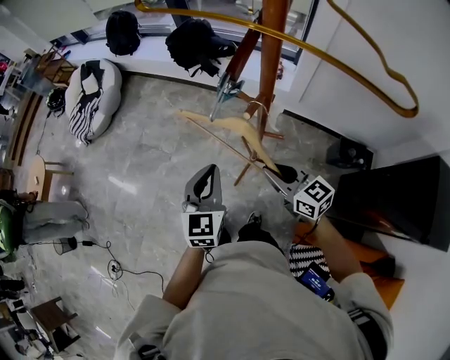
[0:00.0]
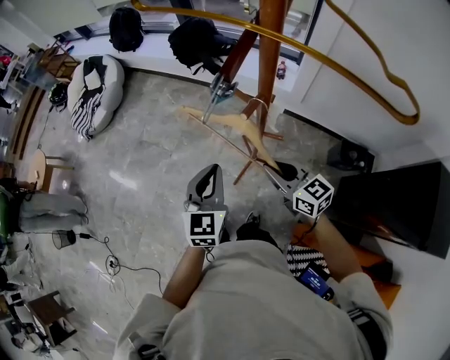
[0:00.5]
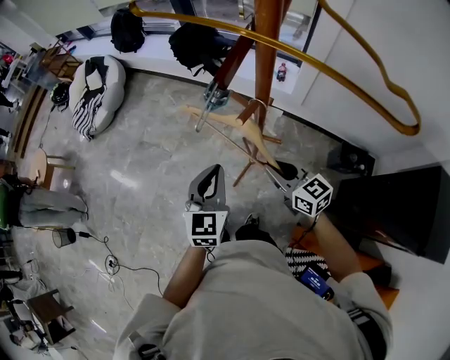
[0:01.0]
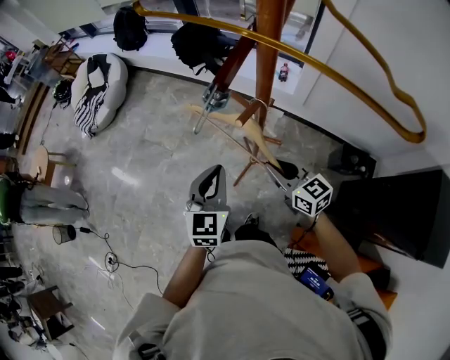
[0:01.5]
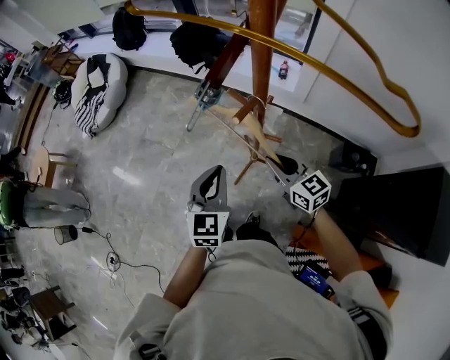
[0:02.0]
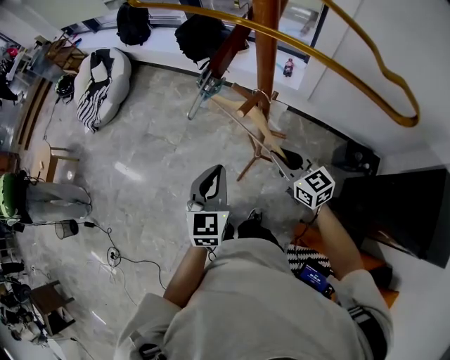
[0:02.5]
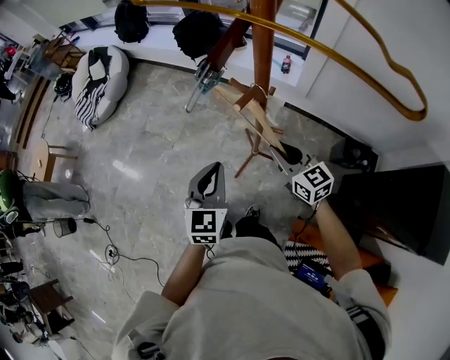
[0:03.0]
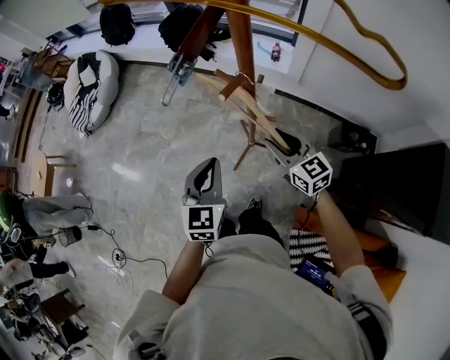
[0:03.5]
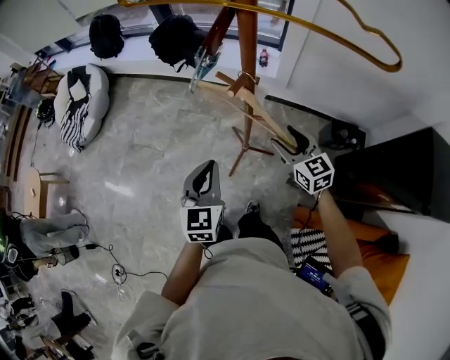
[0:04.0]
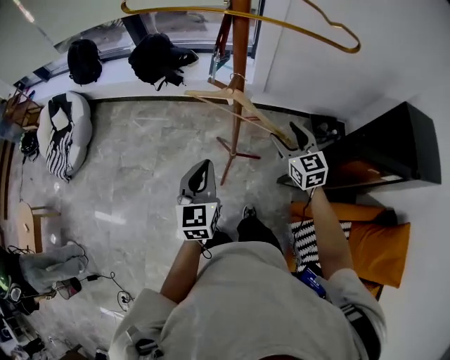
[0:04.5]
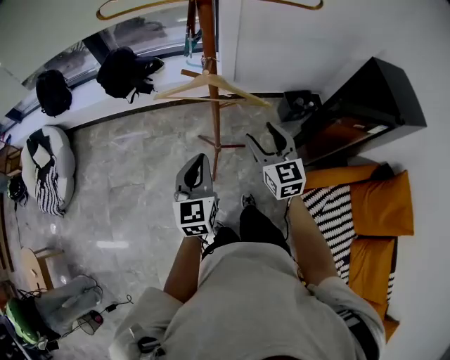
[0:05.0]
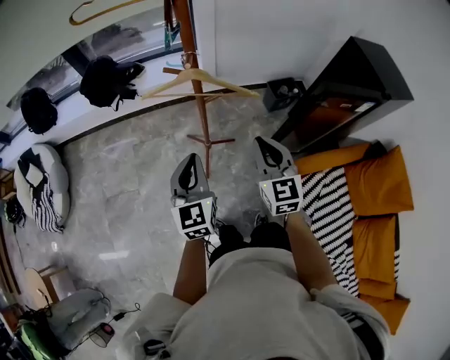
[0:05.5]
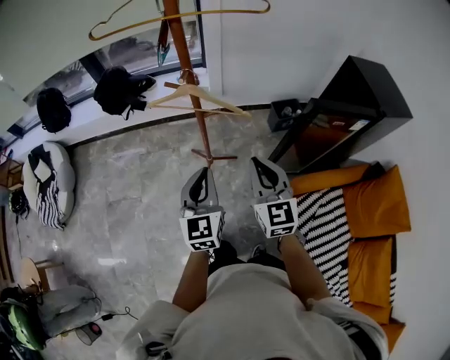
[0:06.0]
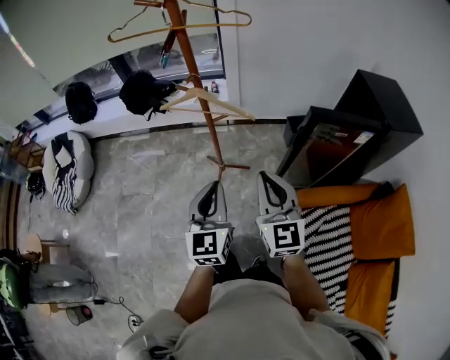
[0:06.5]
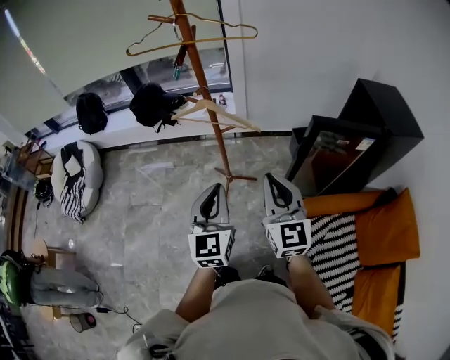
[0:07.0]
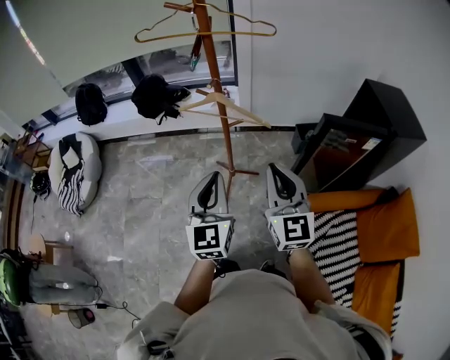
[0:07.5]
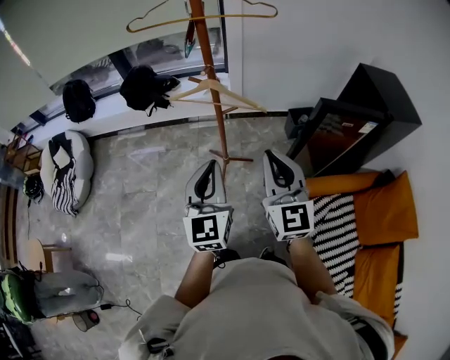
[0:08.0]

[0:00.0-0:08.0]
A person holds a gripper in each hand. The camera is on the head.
0:00.0 to 0:02.0: The left gripper shifts by about 5 cm. Meanwhile the right gripper shifts by approximately 5 cm.
0:02.0 to 0:04.0: The right gripper rotates roughly 20 degrees, and opens its fingers.
0:04.0 to 0:06.0: The right gripper ends up approximately 30 cm from where it was, rotates some 40 degrees, and closes up, while the left gripper changes place by some 15 cm, and rotates approximately 20 degrees.
0:06.0 to 0:08.0: The grippers both shift upward and backward by roughly 10 cm.

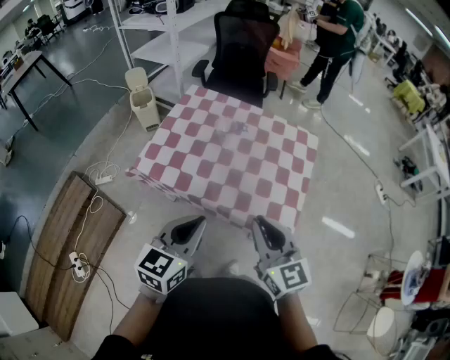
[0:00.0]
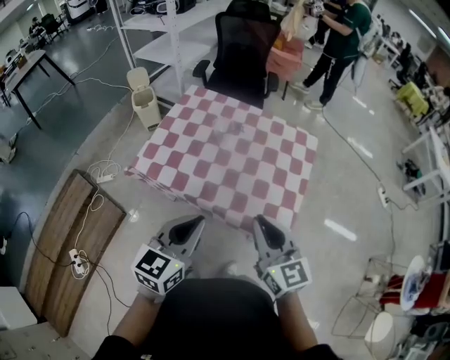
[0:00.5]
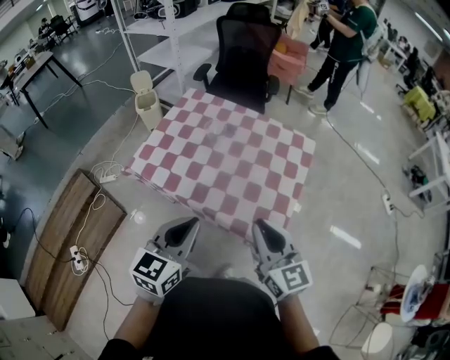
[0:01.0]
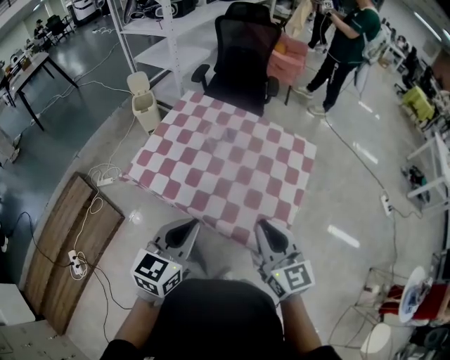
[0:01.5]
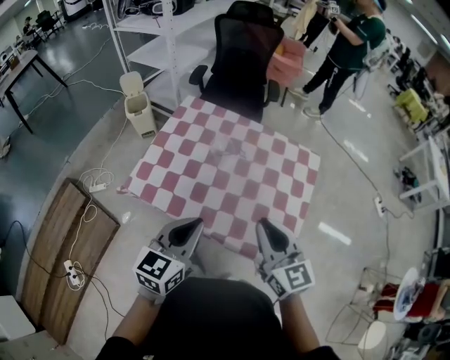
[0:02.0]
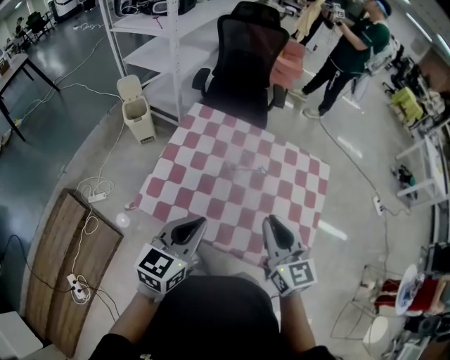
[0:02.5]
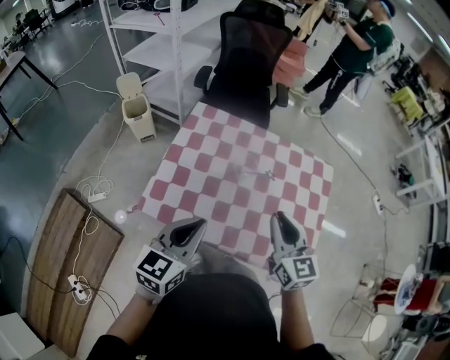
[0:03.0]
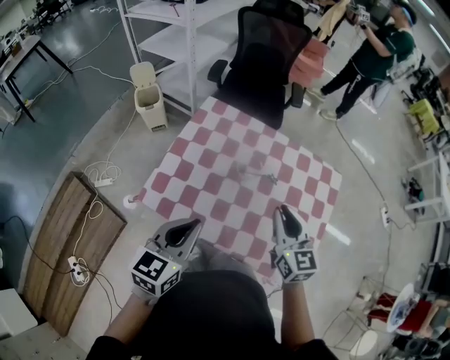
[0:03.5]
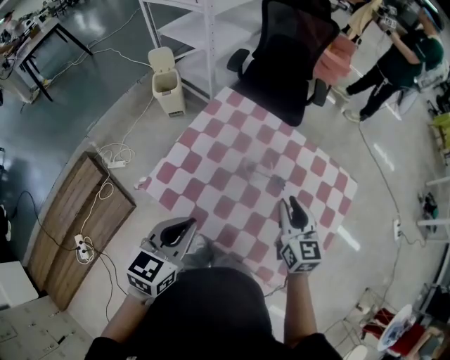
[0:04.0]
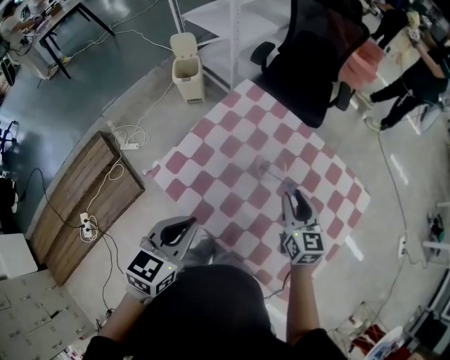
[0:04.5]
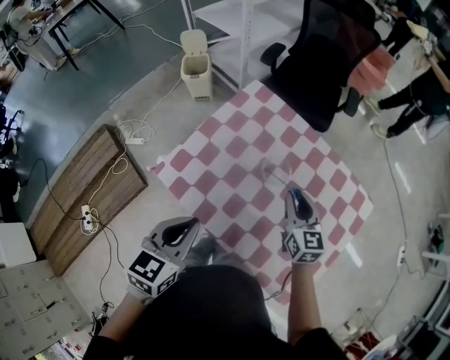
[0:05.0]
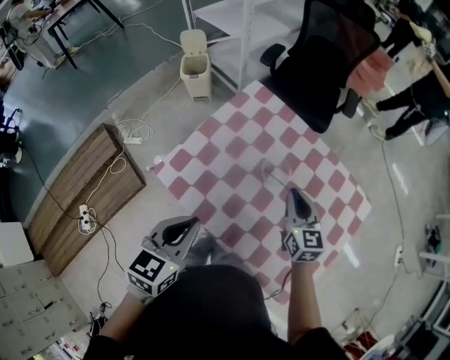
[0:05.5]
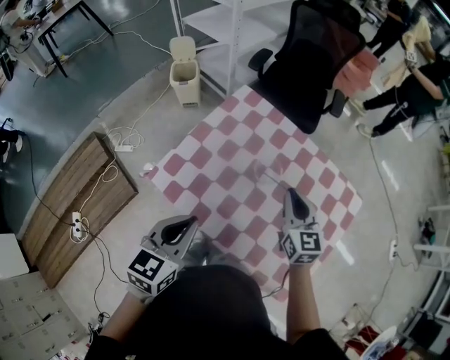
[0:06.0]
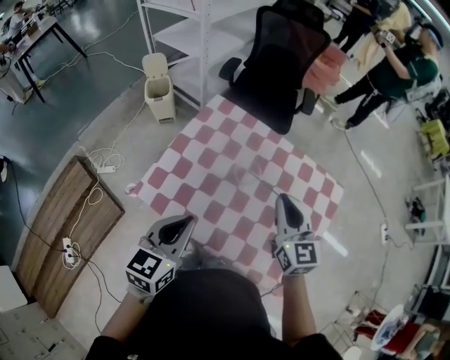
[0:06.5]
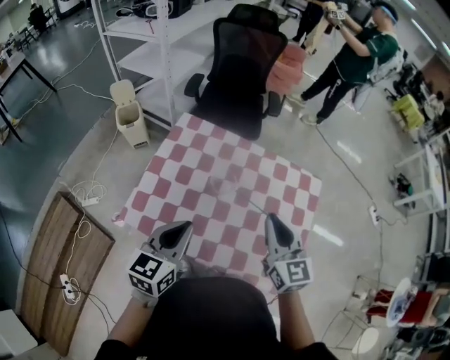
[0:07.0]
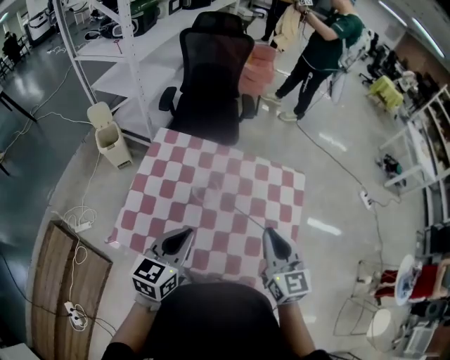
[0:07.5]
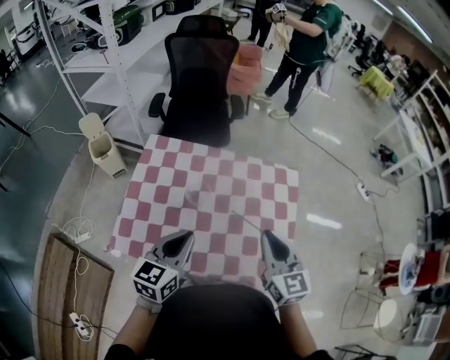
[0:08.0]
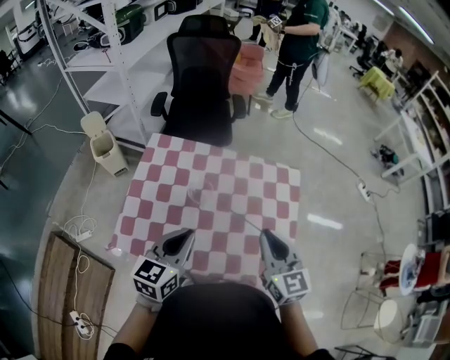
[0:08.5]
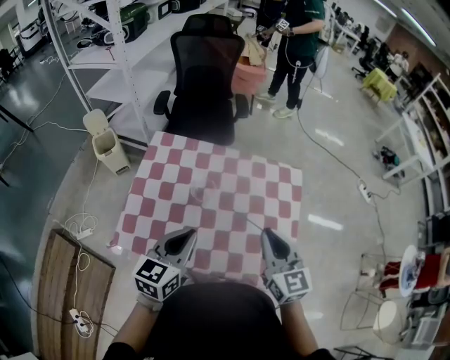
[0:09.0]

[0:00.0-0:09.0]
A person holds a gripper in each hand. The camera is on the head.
0:00.0 to 0:02.0: Both grippers travel together forward, about 10 cm.
0:02.0 to 0:04.5: The right gripper travels forward and downward by some 30 cm, while the left gripper is displaced to the left, forward and downward by about 15 cm, and swivels approximately 20 degrees.
0:04.5 to 0:07.0: The right gripper travels upward and backward by roughly 15 cm, and closes up, while the left gripper ends up some 5 cm from where it was.
0:07.0 to 0:09.0: The right gripper changes place by some 5 cm, while the left gripper moves approximately 5 cm.

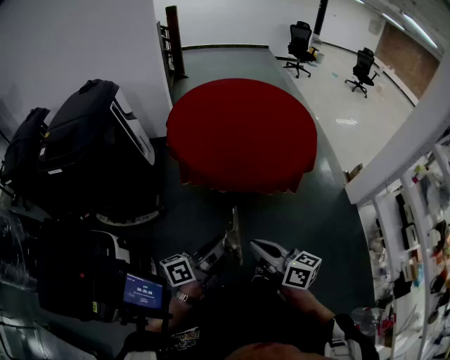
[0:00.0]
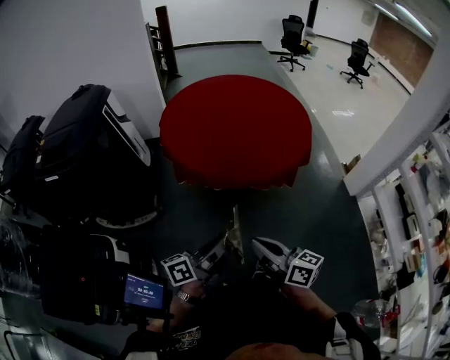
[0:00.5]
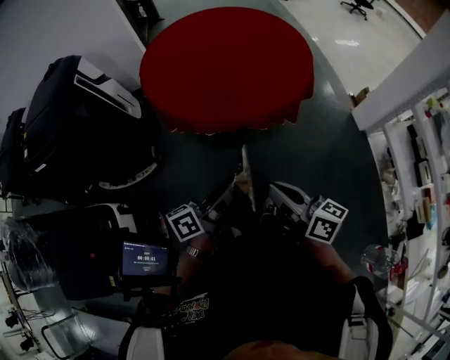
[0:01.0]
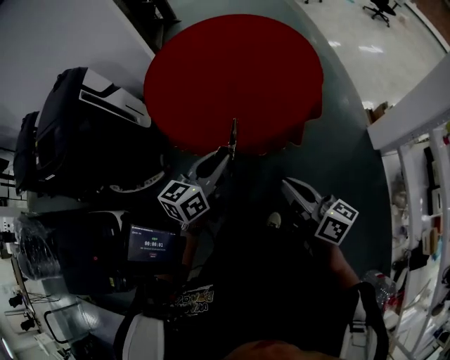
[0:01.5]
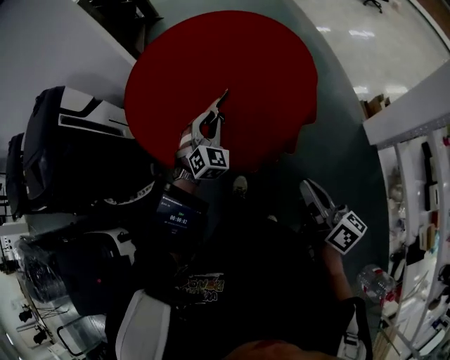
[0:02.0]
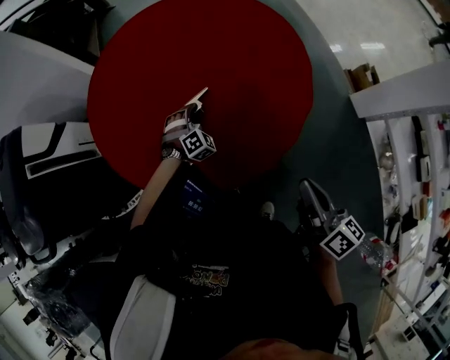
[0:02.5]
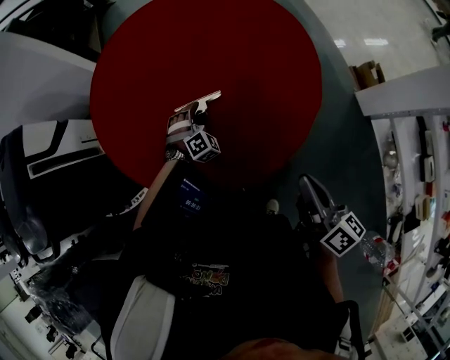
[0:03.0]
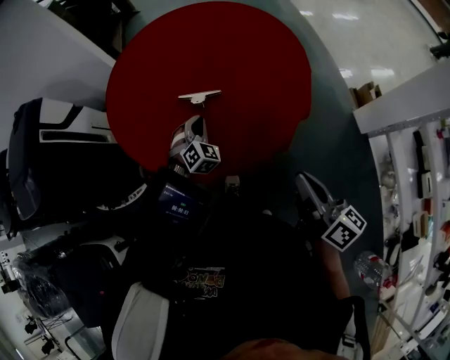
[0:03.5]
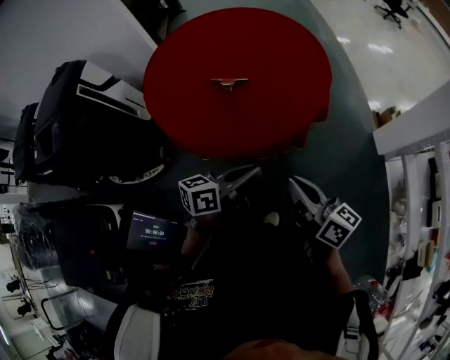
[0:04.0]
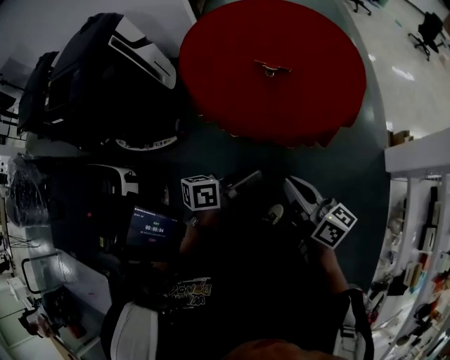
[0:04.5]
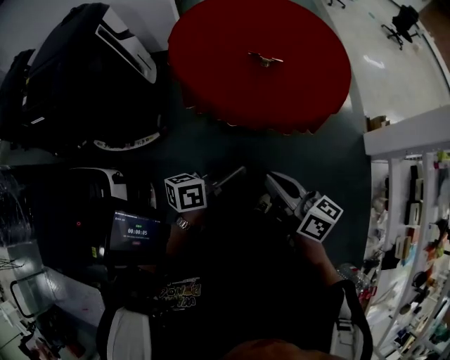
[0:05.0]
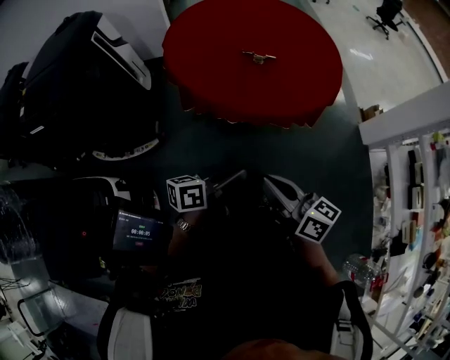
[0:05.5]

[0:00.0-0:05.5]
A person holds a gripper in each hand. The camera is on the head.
0:00.0 to 0:02.0: The left gripper goes about 50 cm forward, and rotates around the line of its fingers by about 100 degrees, clockwise from behind, while the right gripper is displaced to the right and forward by approximately 40 cm, and rotates about 30 degrees.
0:02.0 to 0:03.5: The right gripper shifts about 5 cm forward. Meanwhile the left gripper shifts some 10 cm downward and forward.
0:03.5 to 0:05.5: The right gripper goes about 40 cm to the left and backward, and changes its angle by some 20 degrees. Meanwhile the left gripper goes about 40 cm backward, and twists some 90 degrees counterclockwise, seen from behind.

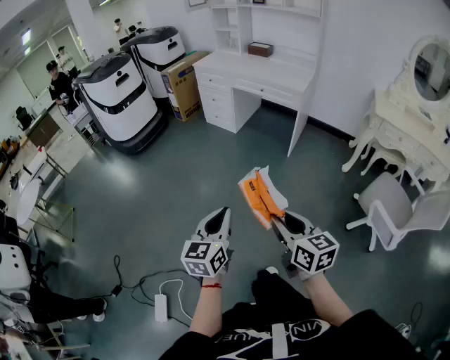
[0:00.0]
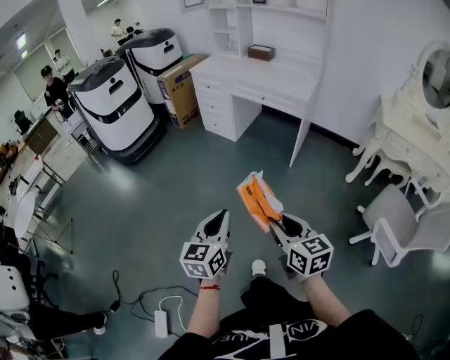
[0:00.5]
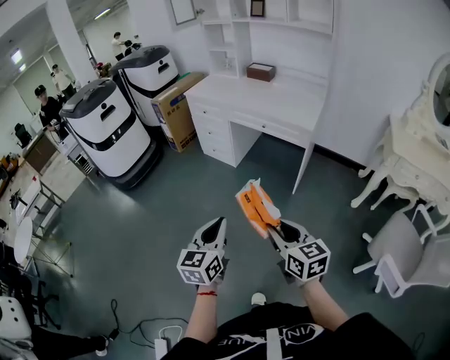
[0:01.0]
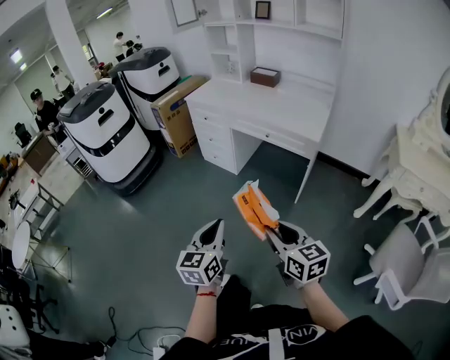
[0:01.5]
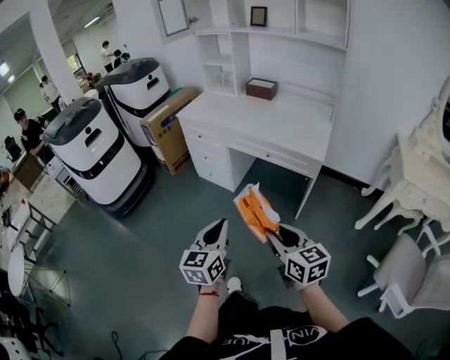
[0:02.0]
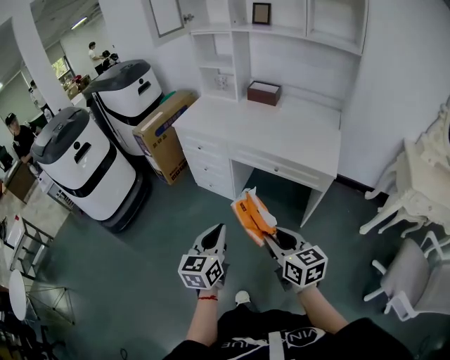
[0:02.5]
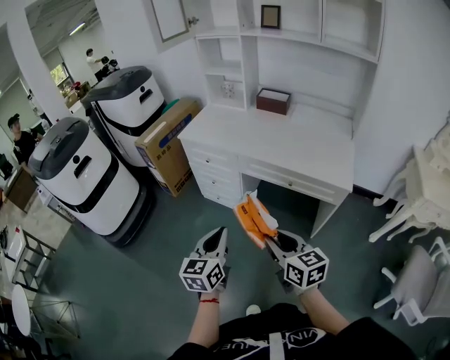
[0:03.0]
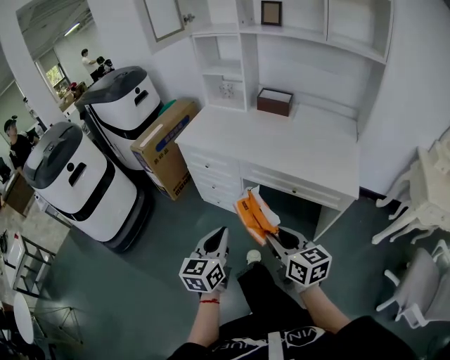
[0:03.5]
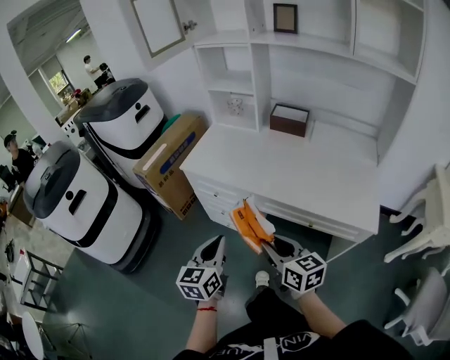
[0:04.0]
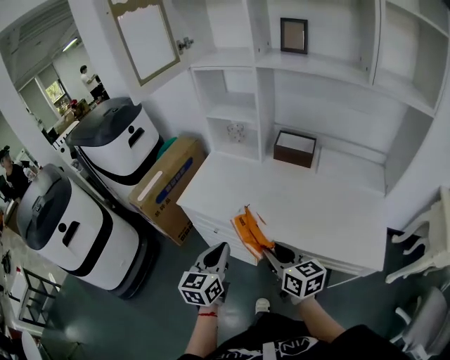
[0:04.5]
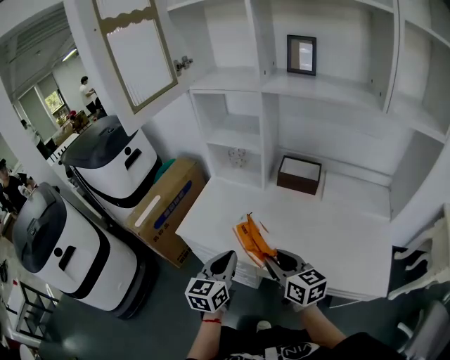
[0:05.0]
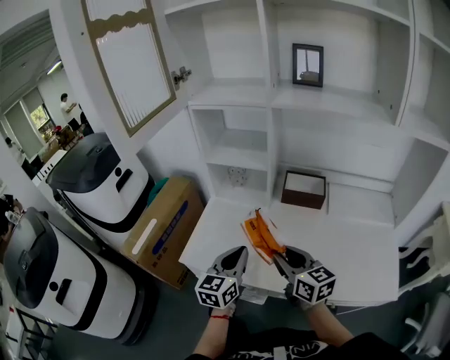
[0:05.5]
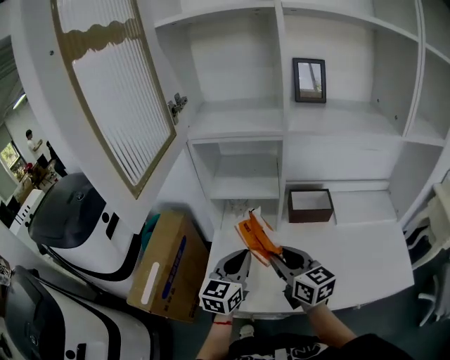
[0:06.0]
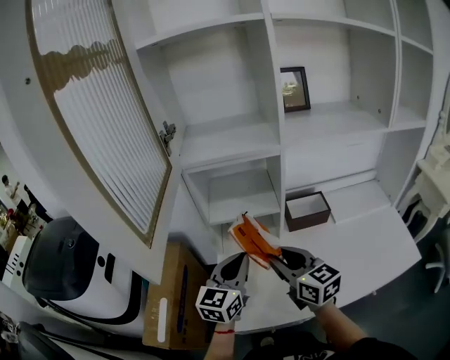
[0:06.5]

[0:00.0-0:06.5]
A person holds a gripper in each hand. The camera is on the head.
0:00.0 to 0:02.0: Both grippers are carried forward, some 60 cm.
0:02.0 to 0:04.5: Both grippers are carried forward, some 60 cm.
0:04.5 to 0:06.5: The right gripper ends up some 40 cm from where it was, and swivels approximately 30 degrees; the left gripper moves about 40 cm, and turns by some 40 degrees.
